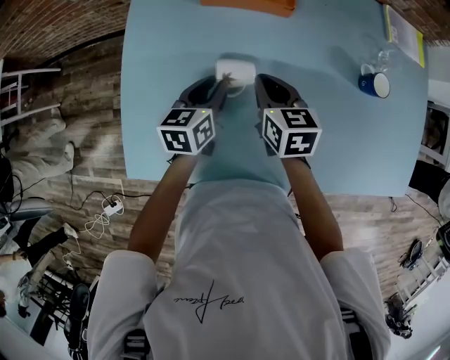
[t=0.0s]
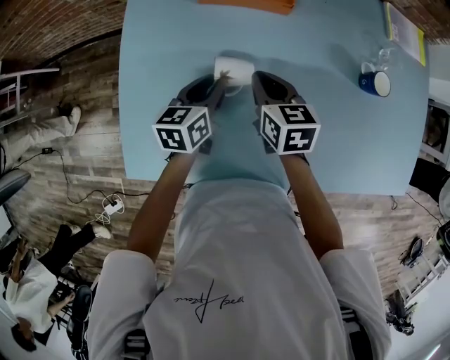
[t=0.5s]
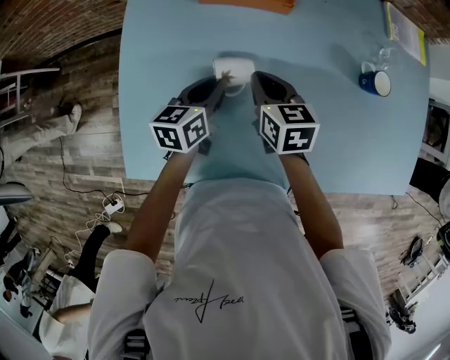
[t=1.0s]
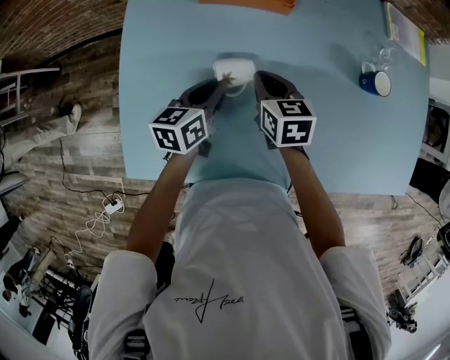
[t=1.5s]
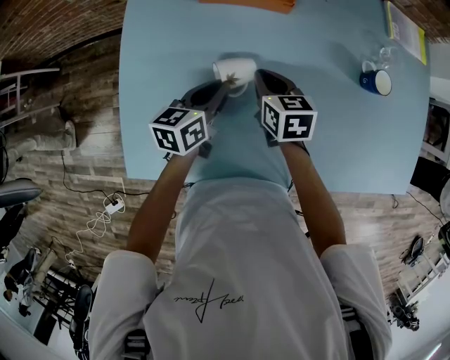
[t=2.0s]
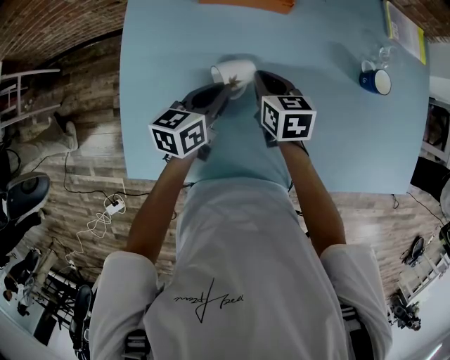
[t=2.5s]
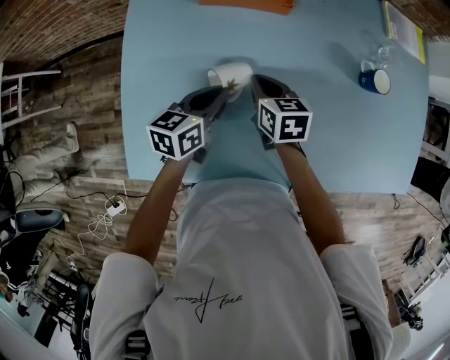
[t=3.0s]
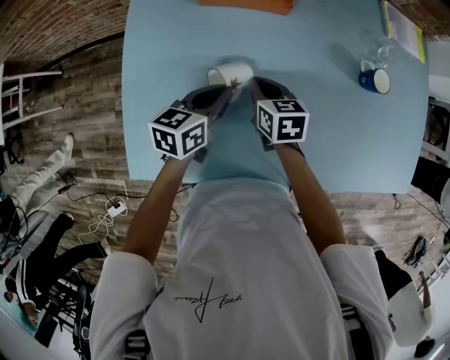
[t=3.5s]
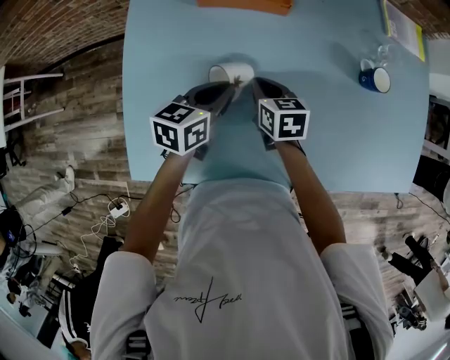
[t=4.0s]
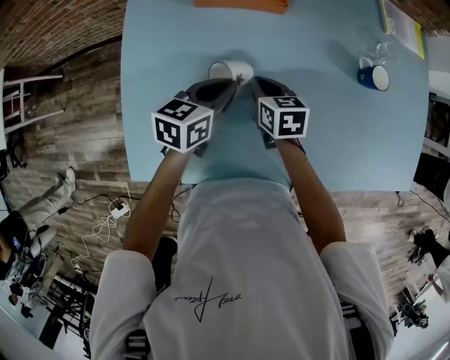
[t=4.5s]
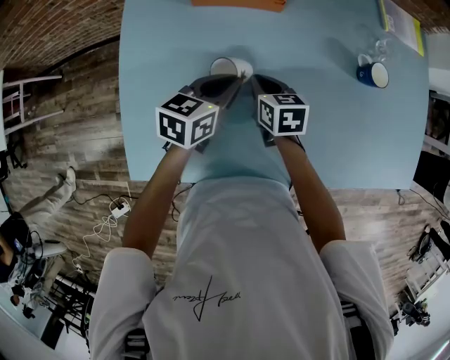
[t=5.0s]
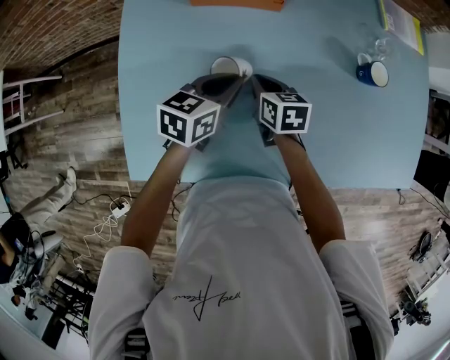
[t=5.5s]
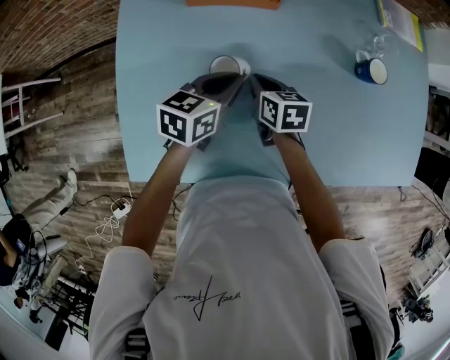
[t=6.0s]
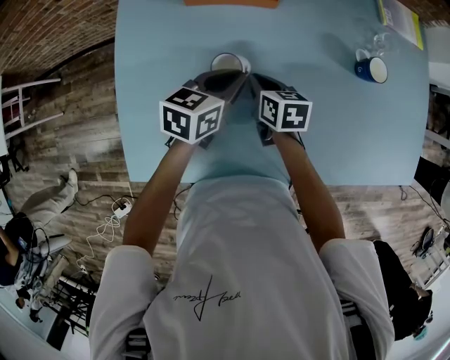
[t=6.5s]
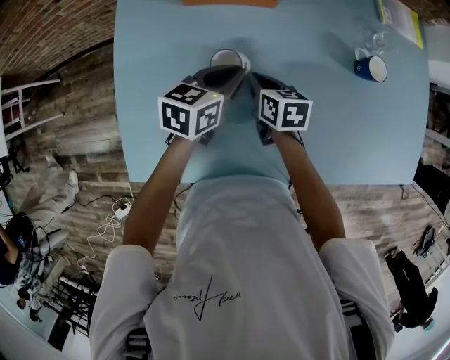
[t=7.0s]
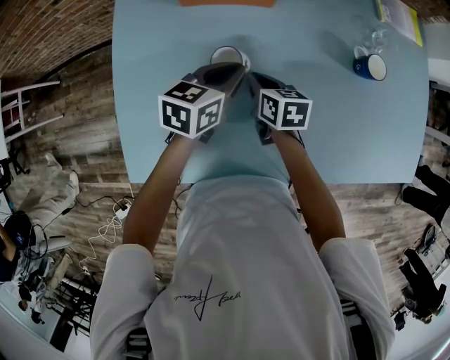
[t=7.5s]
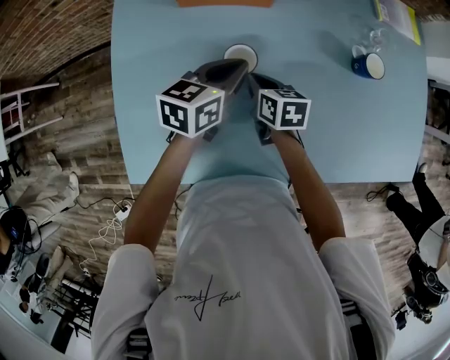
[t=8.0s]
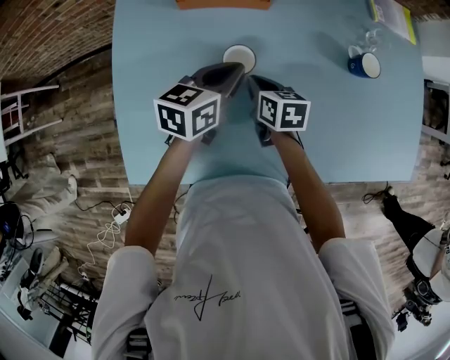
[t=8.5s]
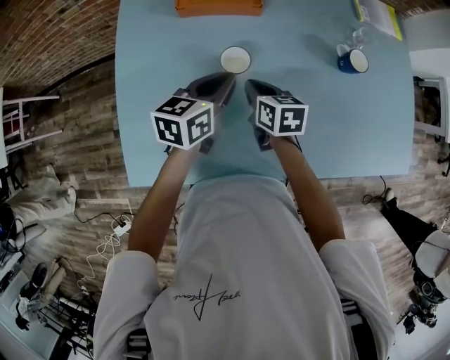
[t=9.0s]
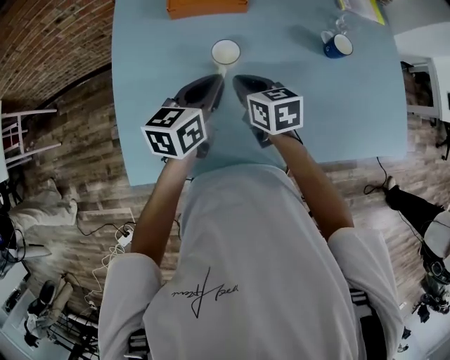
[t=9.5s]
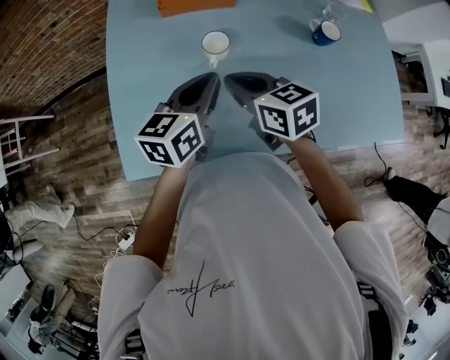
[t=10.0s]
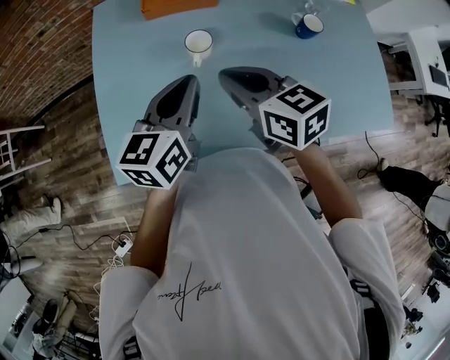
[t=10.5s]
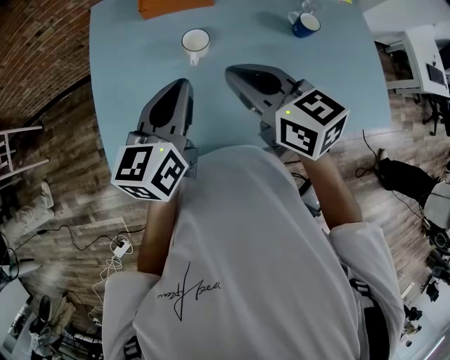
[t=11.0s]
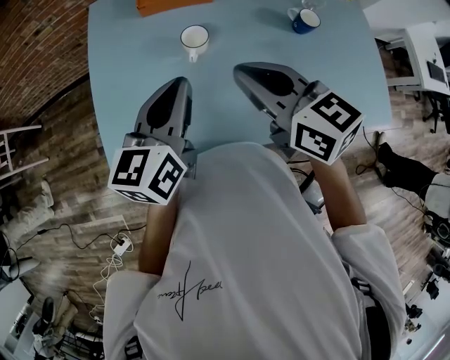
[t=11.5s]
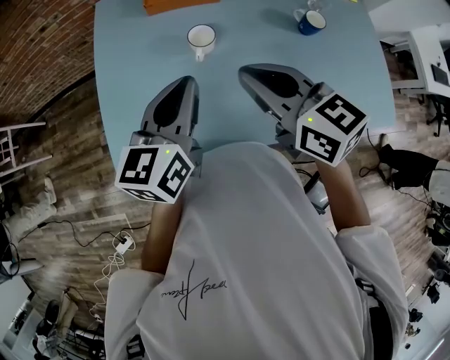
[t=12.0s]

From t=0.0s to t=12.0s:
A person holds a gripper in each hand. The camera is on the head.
From t=0.0s to t=2.0s: The grippers make only small movements.
From t=2.0s to t=6.0s: There are only small adjustments of the grippers.
From t=6.0s to t=8.0s: There are only small adjustments of the grippers.
From t=8.0s to t=10.0s: The right gripper shifts roughly 20 cm upward and backward, and rotates about 20 degrees. The left gripper heads backward and upward, covering about 15 cm.
From t=10.0s to t=12.0s: The left gripper travels upward by roughly 5 cm, while the right gripper heads upward, covering about 10 cm.

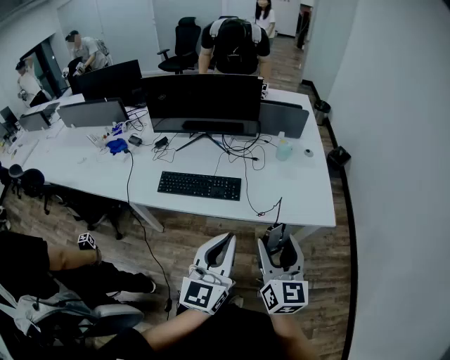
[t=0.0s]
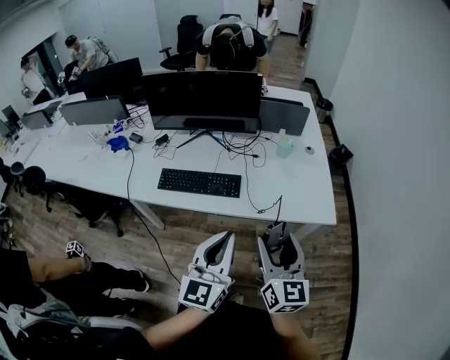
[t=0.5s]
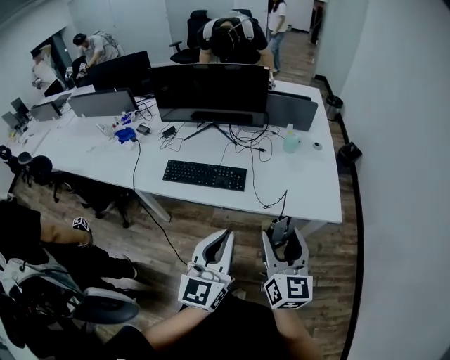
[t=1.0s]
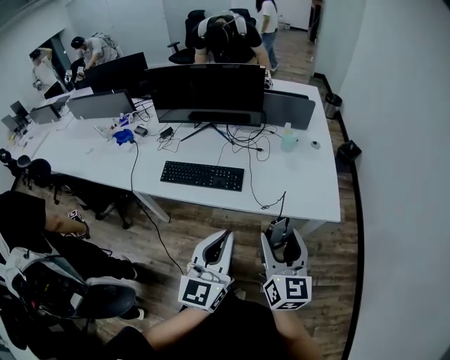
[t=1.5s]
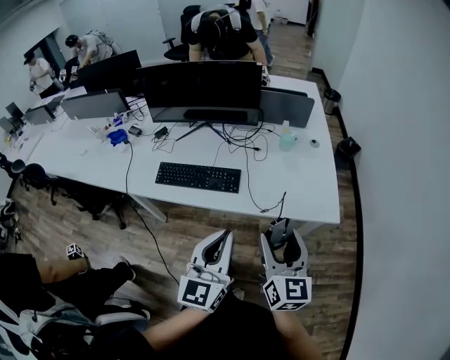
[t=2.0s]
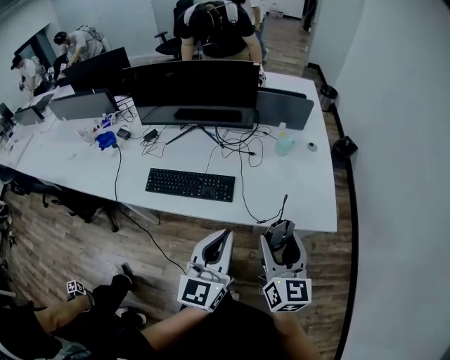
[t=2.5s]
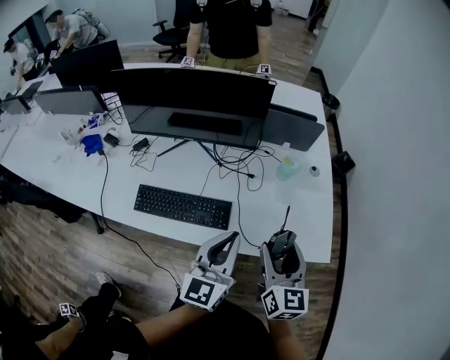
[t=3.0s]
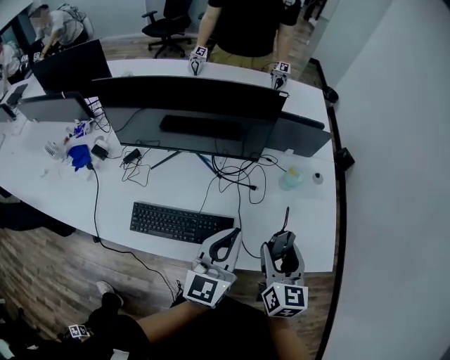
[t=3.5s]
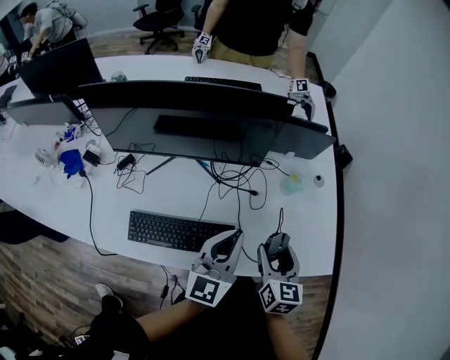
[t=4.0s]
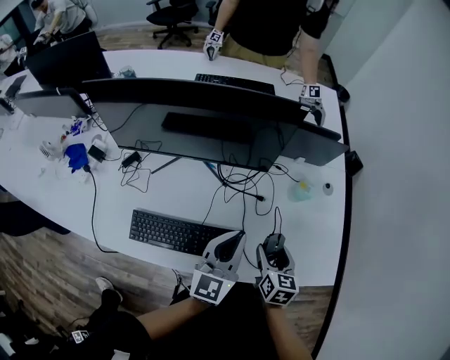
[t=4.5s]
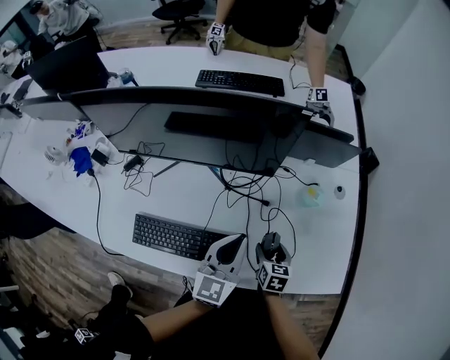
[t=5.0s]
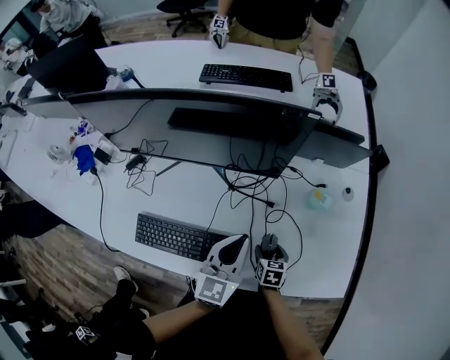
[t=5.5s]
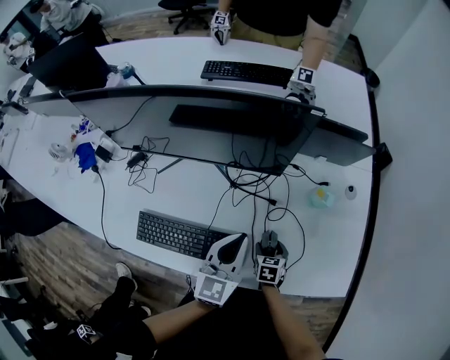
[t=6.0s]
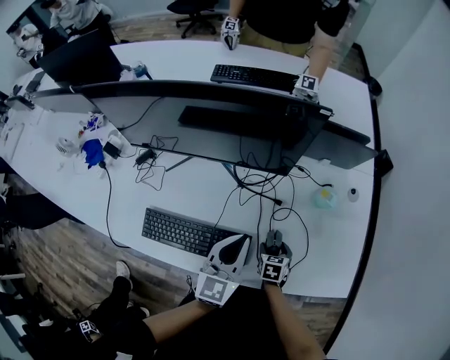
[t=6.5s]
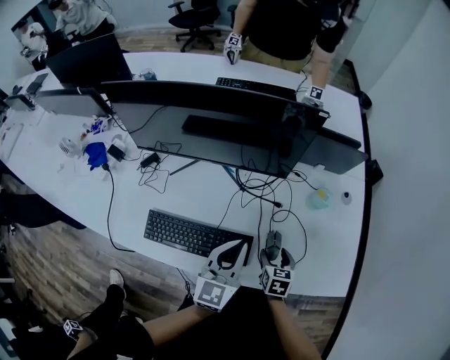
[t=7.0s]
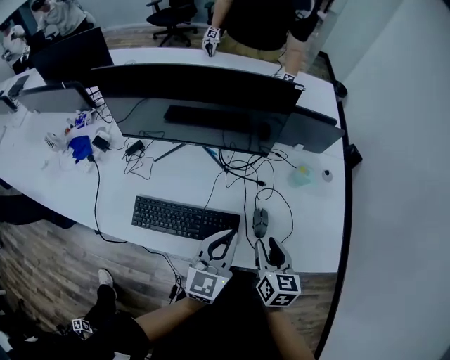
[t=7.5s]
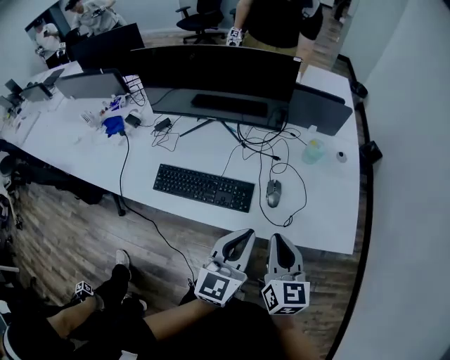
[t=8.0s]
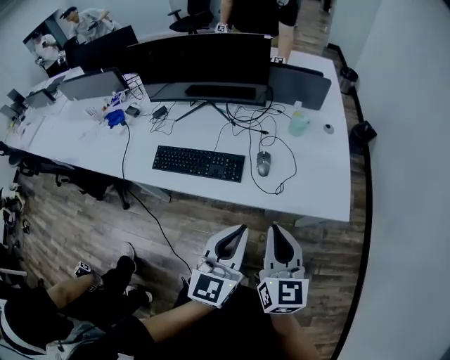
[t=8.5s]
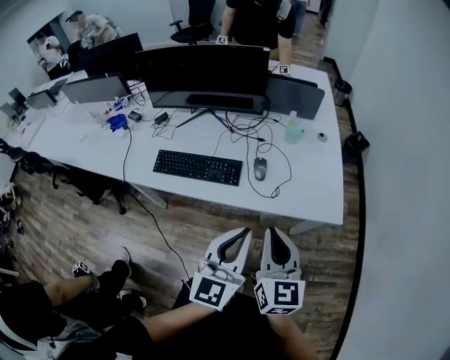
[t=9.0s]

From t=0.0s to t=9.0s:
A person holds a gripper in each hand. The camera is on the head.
From t=0.0s to t=2.0s: The right gripper ends up approximately 5 cm from where it was.
From t=2.0s to t=4.5s: The left gripper heads forward, covering approximately 40 cm. The right gripper goes some 40 cm forward and downward, and tilts its fingers approximately 30 degrees downward.
From t=4.5s to t=7.0s: The right gripper travels downward by some 10 cm.
From t=7.0s to t=9.0s: The left gripper goes some 35 cm backward; the right gripper travels backward and upward by some 40 cm, tilts its fingers about 40 degrees upward, and closes its fingers.

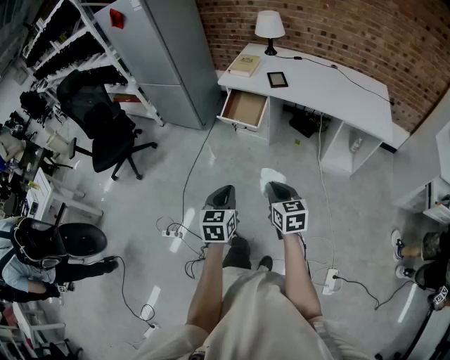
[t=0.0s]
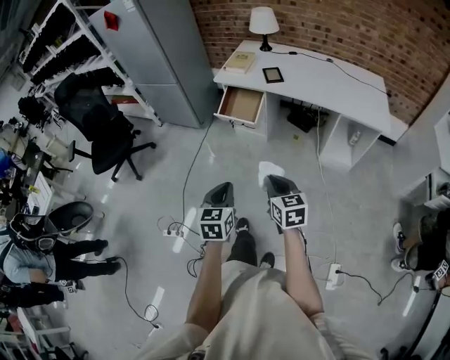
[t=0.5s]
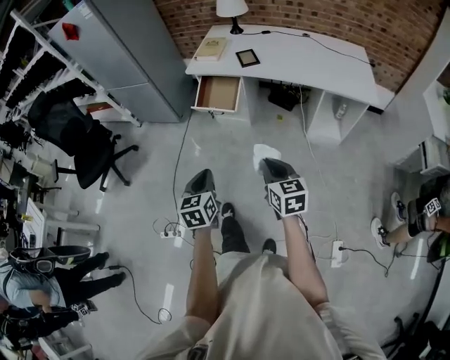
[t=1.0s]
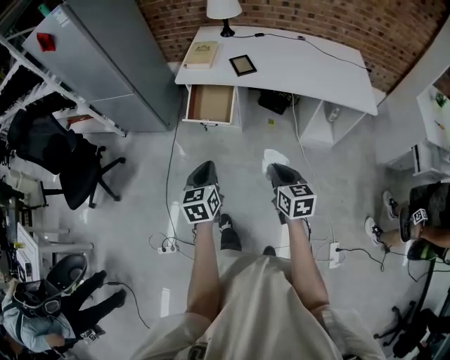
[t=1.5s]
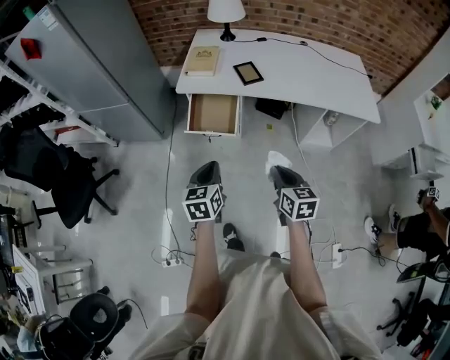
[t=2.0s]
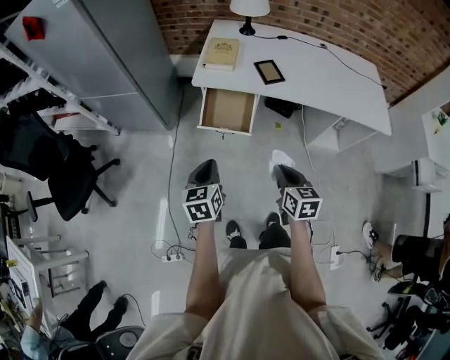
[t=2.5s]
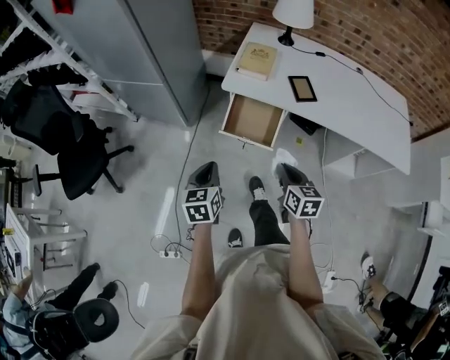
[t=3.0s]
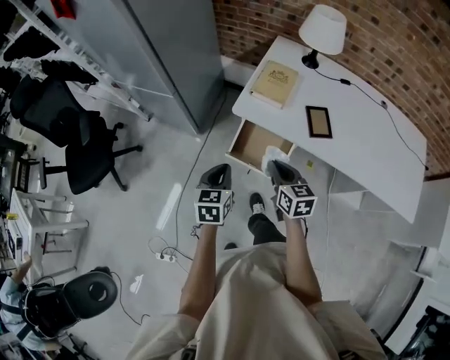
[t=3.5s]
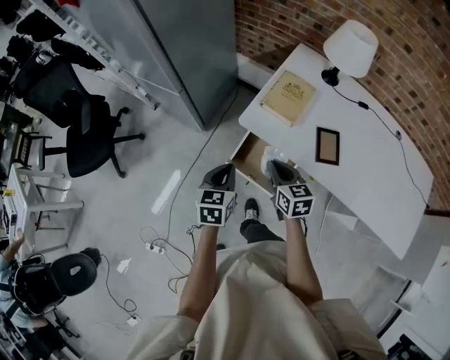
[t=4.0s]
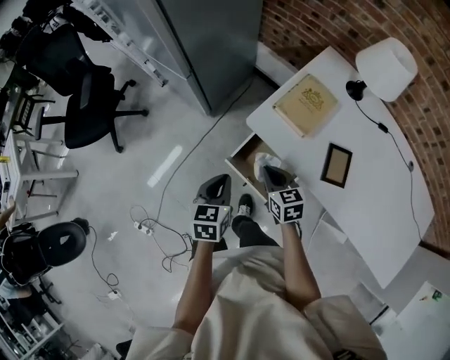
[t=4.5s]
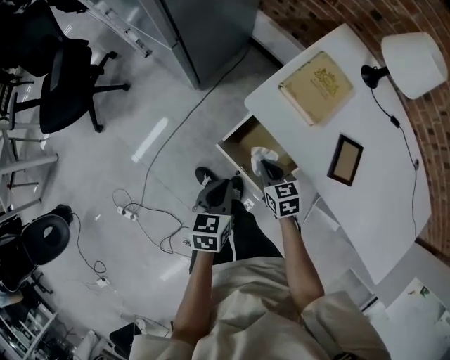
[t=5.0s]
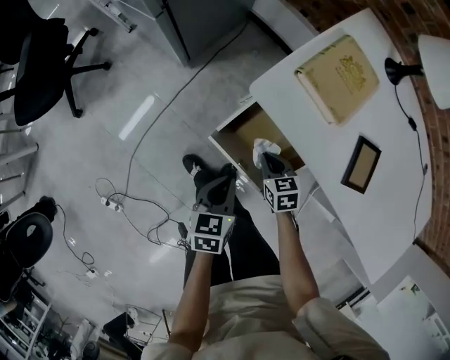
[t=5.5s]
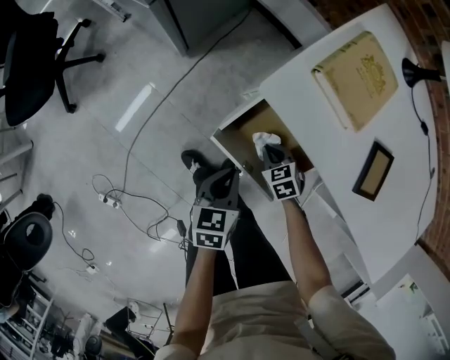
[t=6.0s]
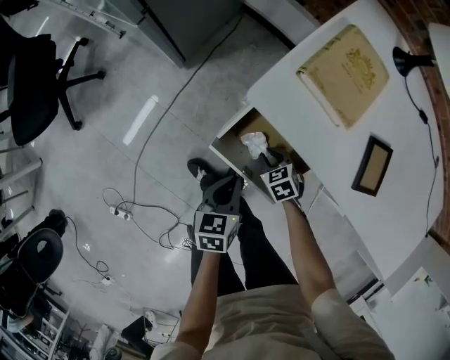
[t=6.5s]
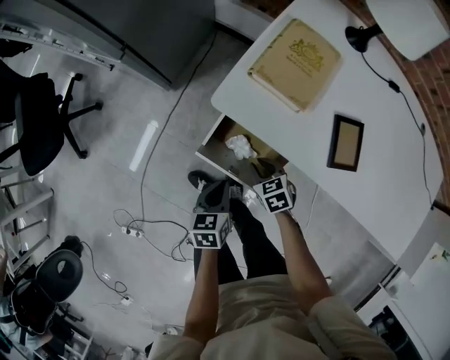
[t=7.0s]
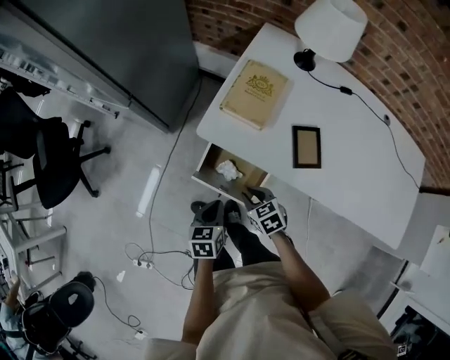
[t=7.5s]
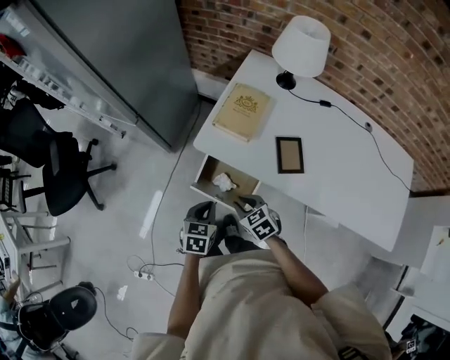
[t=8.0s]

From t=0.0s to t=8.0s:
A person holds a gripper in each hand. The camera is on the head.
From t=0.0s to t=2.0s: The two grippers go about 30 cm forward. The right gripper turns by some 20 degrees.
From t=2.0s to t=4.0s: The two grippers go roughly 40 cm forward. The right gripper rotates roughly 30 degrees.
From t=4.0s to t=6.0s: The grippers both shift downward by some 35 cm. The right gripper points its fingers roughly 30 degrees further downward.
From t=6.0s to t=8.0s: The right gripper moves upward, about 30 cm. Meanwhile the left gripper is displaced upward by roughly 20 cm, and rotates about 30 degrees.
